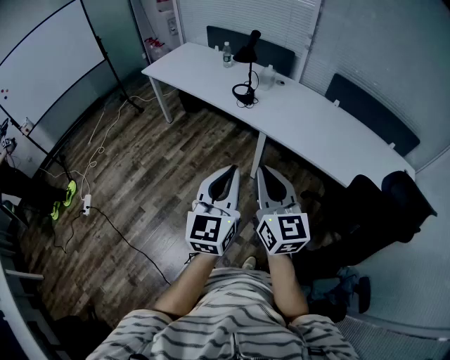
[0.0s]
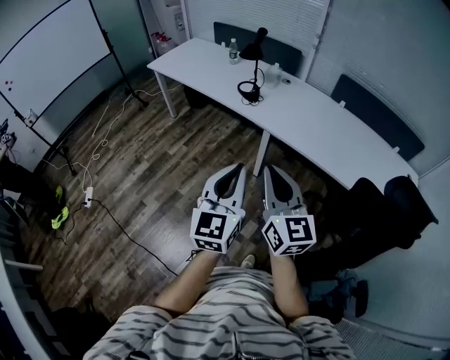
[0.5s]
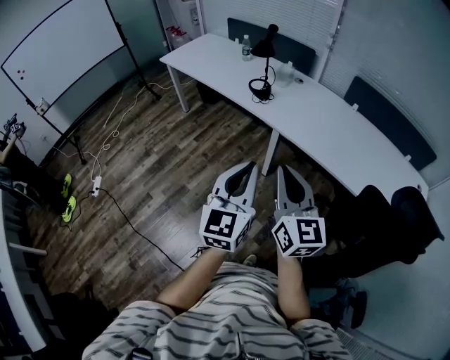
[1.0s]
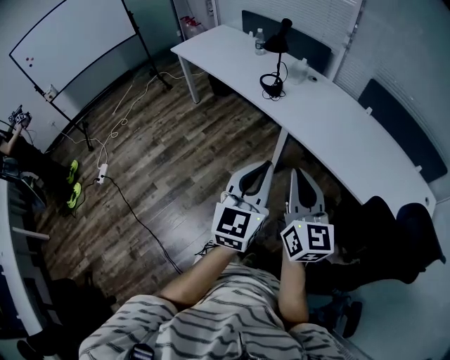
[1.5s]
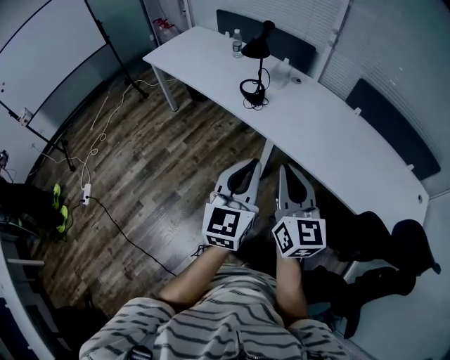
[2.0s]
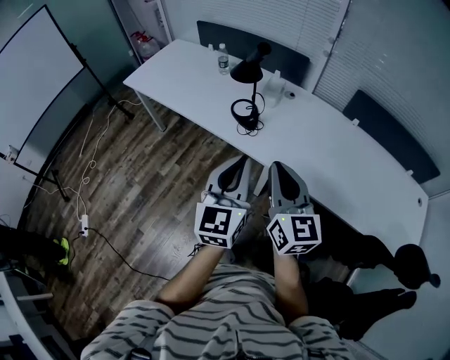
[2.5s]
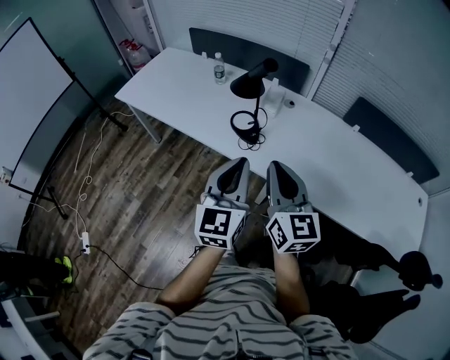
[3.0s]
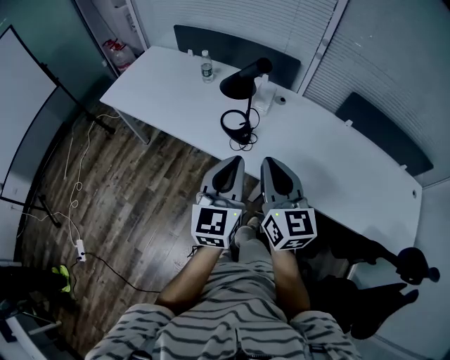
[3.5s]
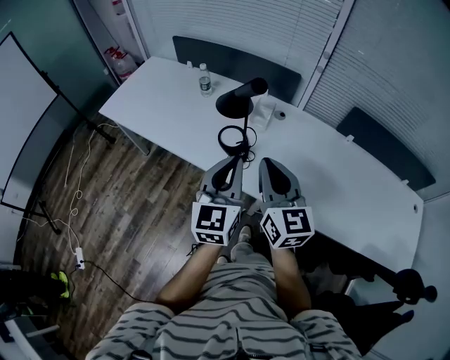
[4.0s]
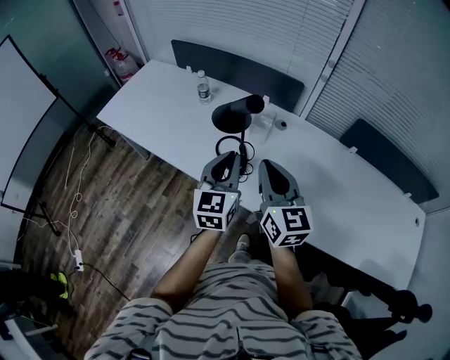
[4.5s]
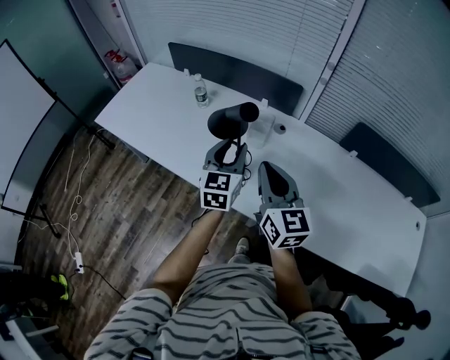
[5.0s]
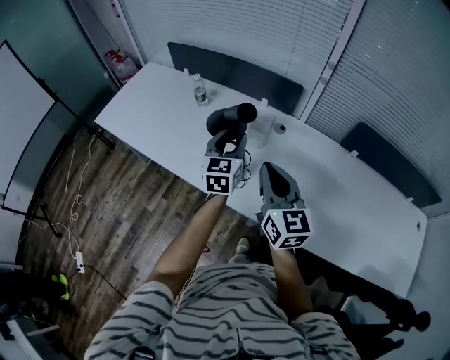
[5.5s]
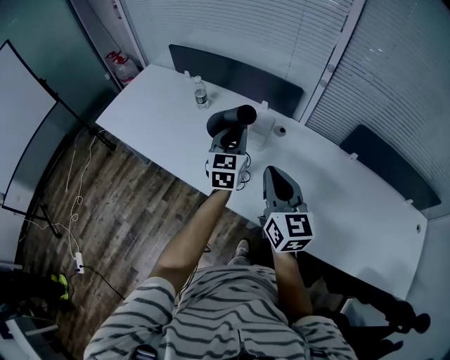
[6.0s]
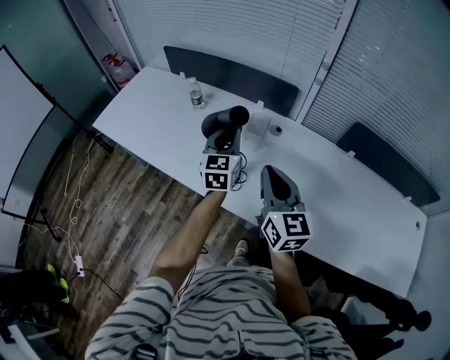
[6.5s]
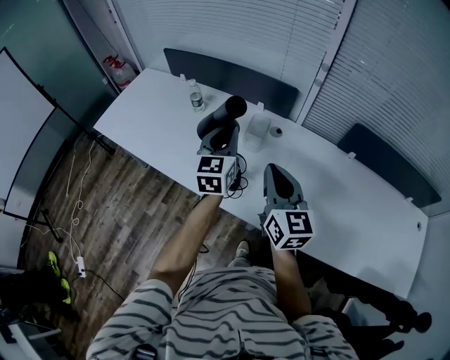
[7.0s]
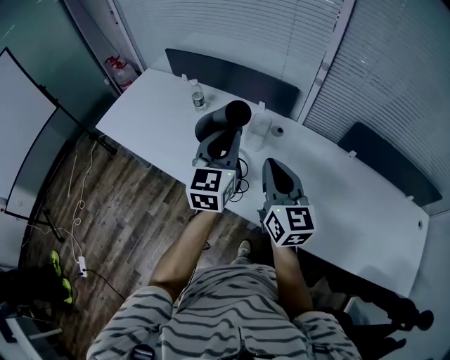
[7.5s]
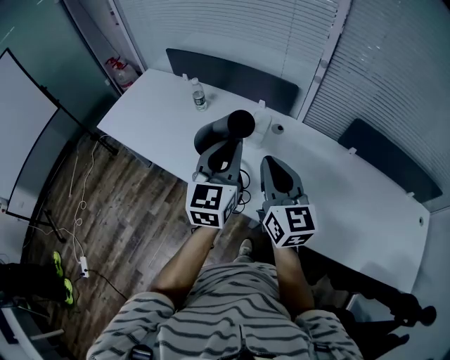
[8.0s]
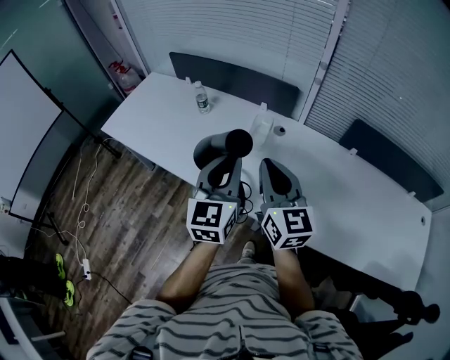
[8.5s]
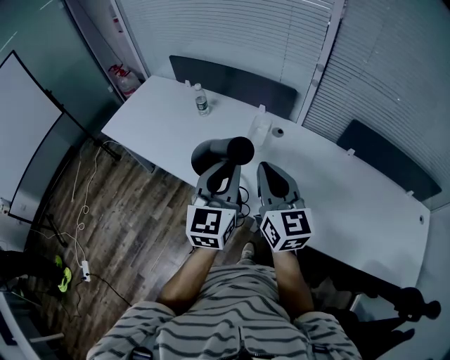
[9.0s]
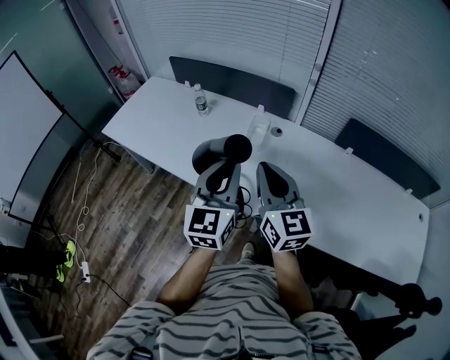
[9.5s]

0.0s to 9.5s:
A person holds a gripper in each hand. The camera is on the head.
0.0s to 2.0s: The right gripper heads forward and to the right, covering some 20 cm. Meanwhile the left gripper heads forward, covering about 20 cm.
2.0s to 4.0s: Both grippers move forward, some 35 cm.
4.0s to 5.5s: The left gripper shifts about 25 cm forward and downward, and opens up. The right gripper is displaced forward by roughly 10 cm.
5.5s to 7.5s: The left gripper goes approximately 10 cm upward, and closes its fingers.
7.5s to 9.5s: The right gripper heads backward, covering approximately 5 cm. Meanwhile the left gripper moves backward, approximately 15 cm.

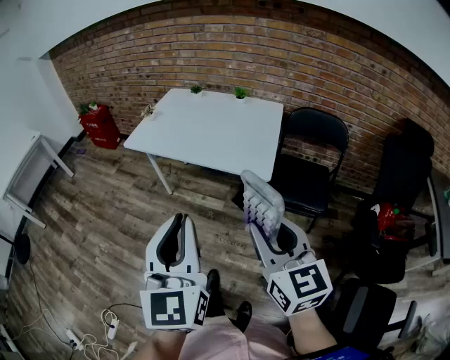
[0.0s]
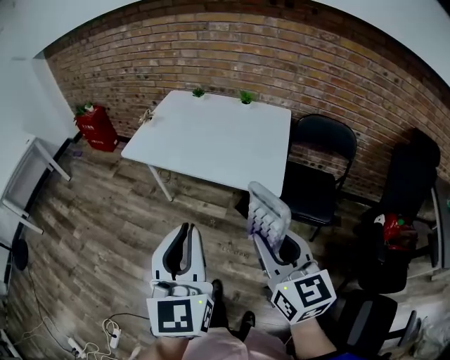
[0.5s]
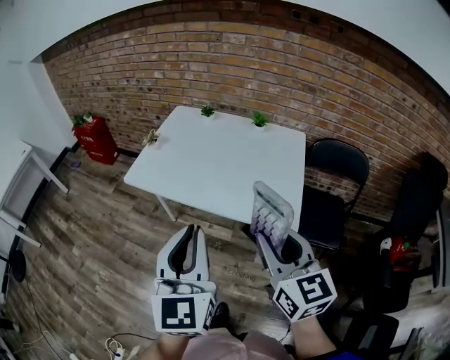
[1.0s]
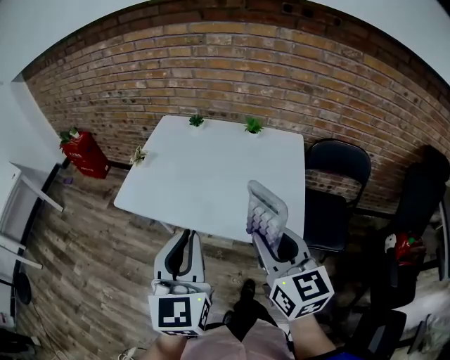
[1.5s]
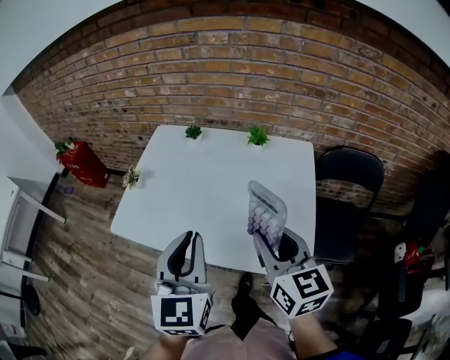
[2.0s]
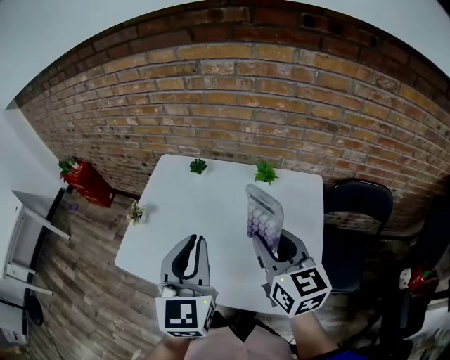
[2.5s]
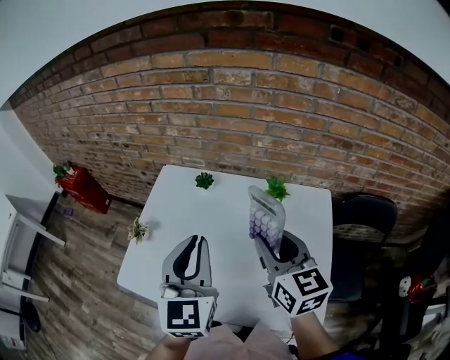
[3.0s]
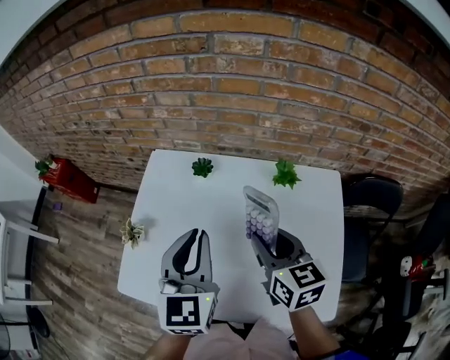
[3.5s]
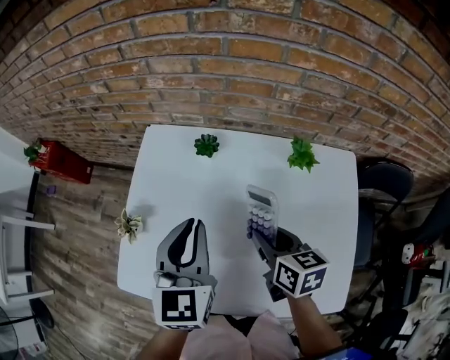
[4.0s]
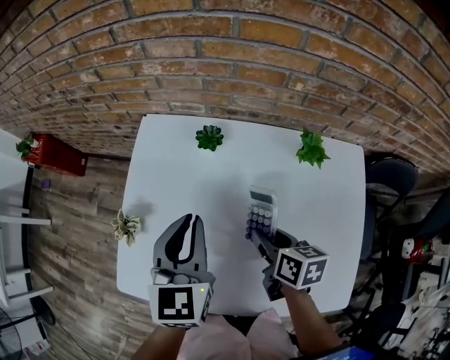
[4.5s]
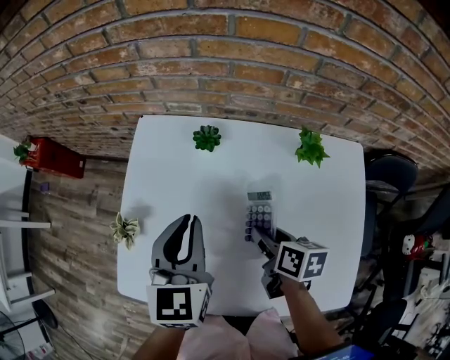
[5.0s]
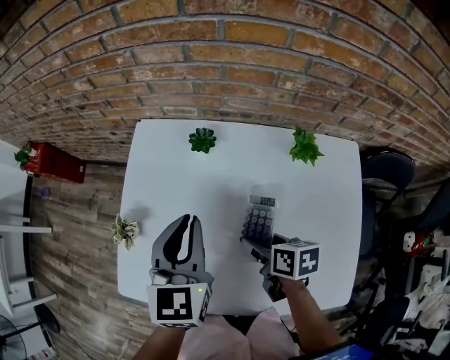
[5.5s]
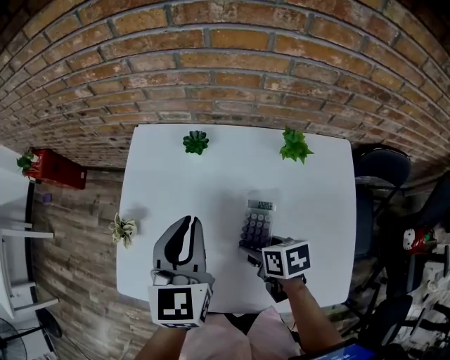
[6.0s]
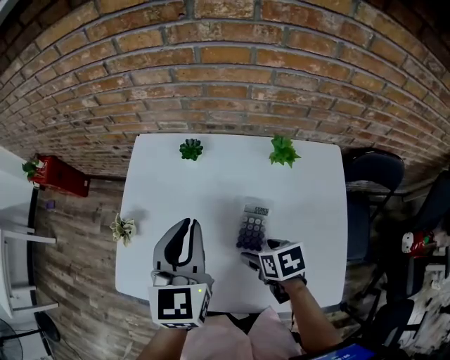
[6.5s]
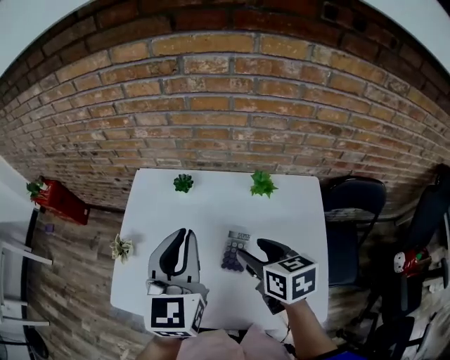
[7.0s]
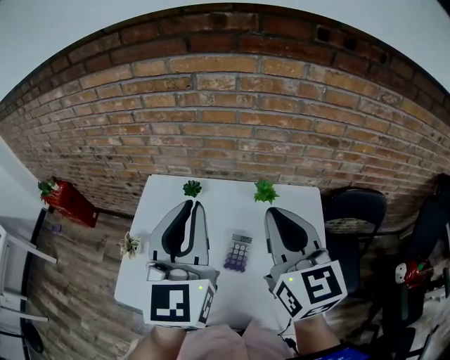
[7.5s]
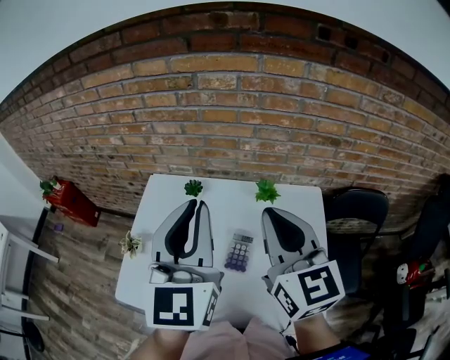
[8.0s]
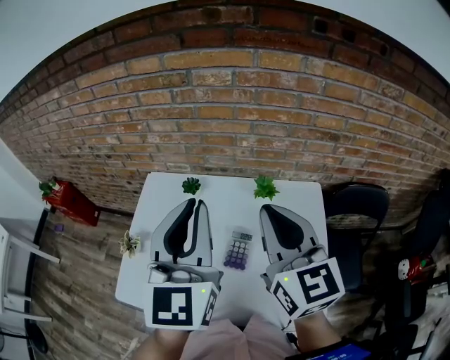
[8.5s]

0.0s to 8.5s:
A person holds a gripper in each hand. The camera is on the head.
0.0s to 2.0s: The two grippers travel together, forward, approximately 40 cm.
2.0s to 4.0s: The right gripper heads forward and downward, covering approximately 30 cm, and rotates about 30 degrees. The left gripper heads forward, covering about 30 cm.
4.0s to 6.5s: The right gripper goes about 10 cm downward and backward, rotates about 30 degrees, and opens its fingers.
6.5s to 8.5s: The right gripper goes approximately 35 cm upward, points its fingers about 60 degrees further upward, and closes. The left gripper travels upward by approximately 20 cm, and turns by roughly 20 degrees.

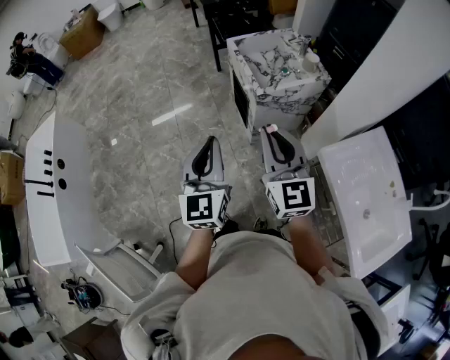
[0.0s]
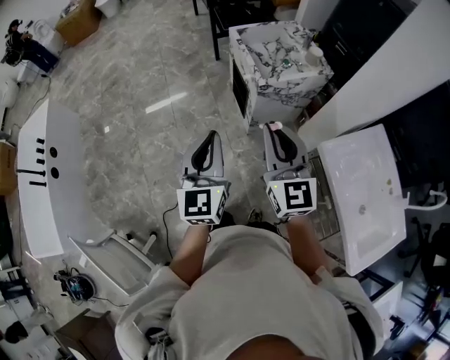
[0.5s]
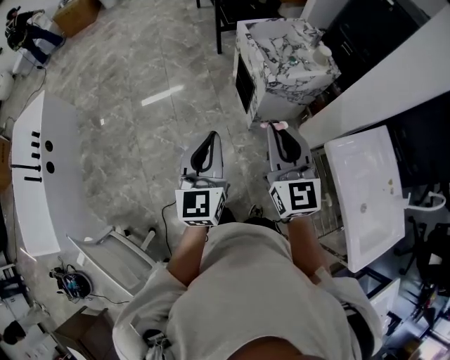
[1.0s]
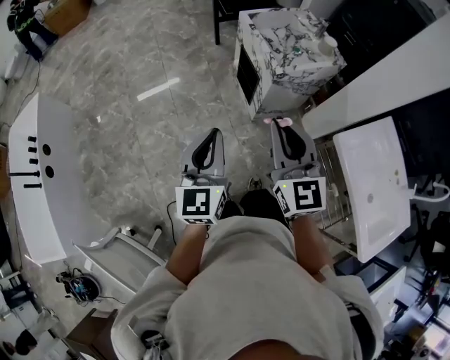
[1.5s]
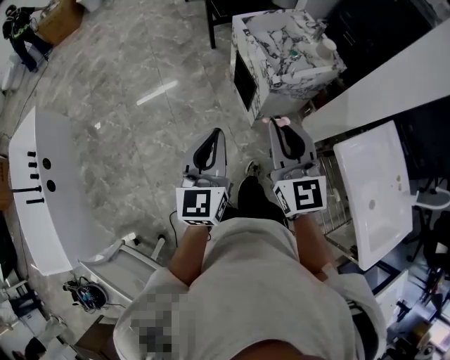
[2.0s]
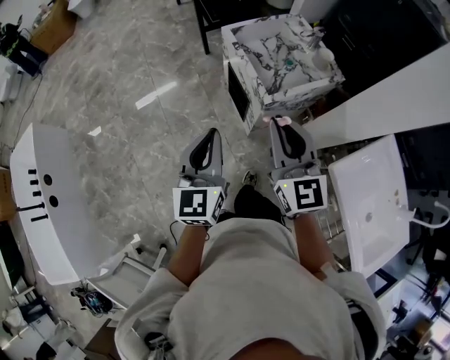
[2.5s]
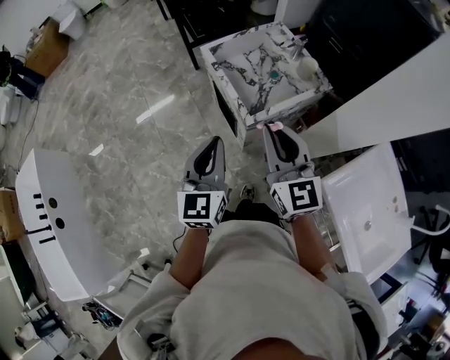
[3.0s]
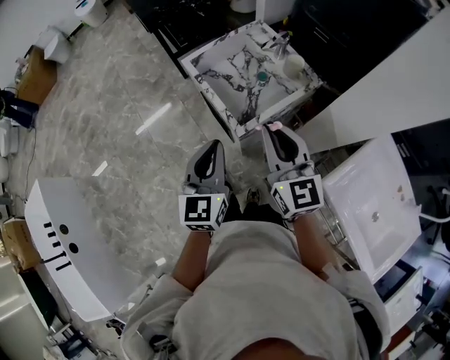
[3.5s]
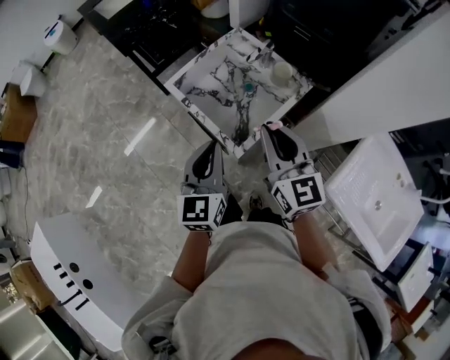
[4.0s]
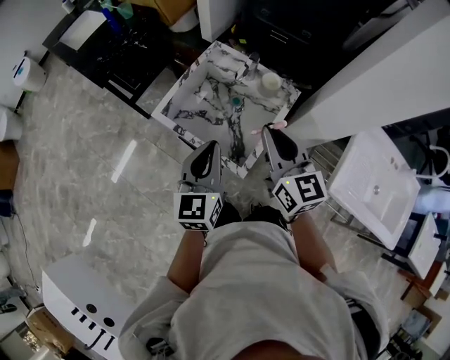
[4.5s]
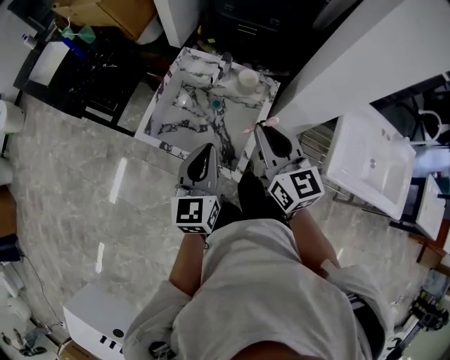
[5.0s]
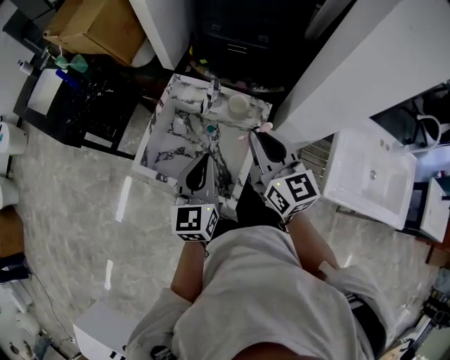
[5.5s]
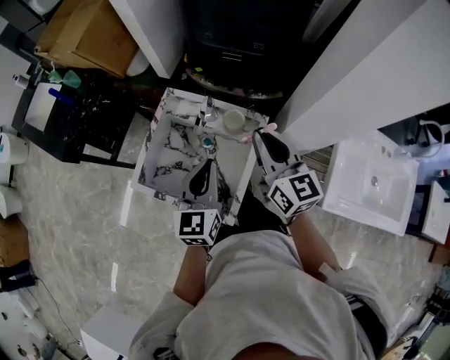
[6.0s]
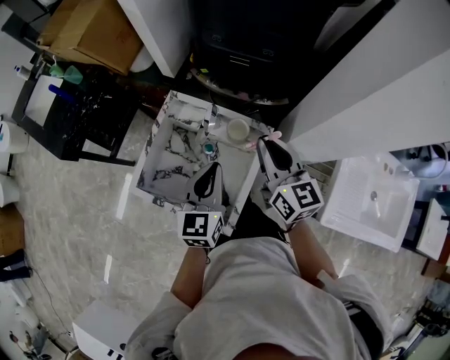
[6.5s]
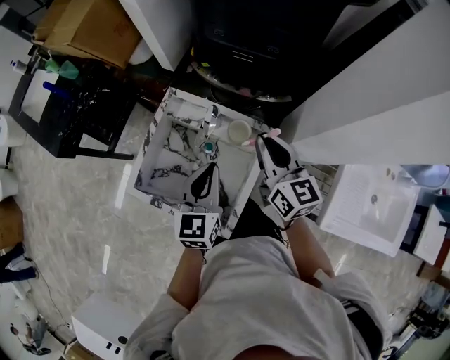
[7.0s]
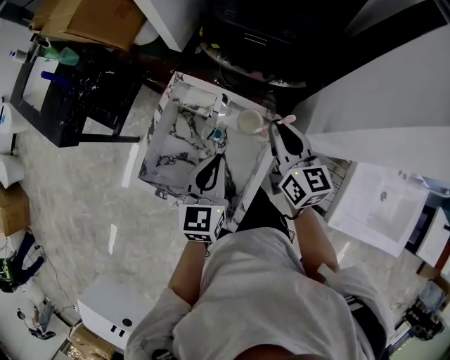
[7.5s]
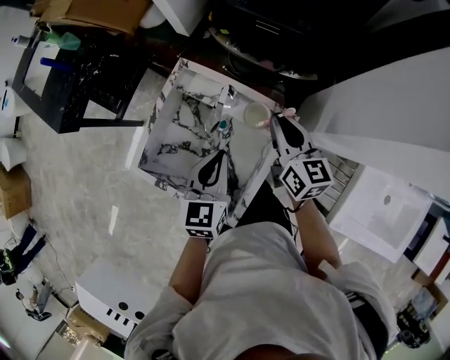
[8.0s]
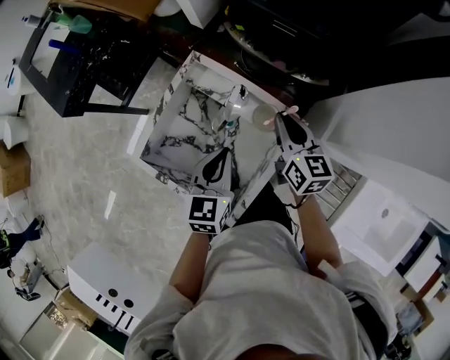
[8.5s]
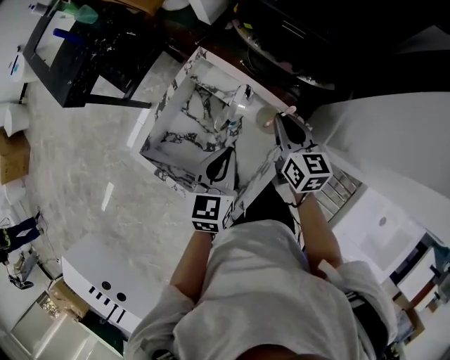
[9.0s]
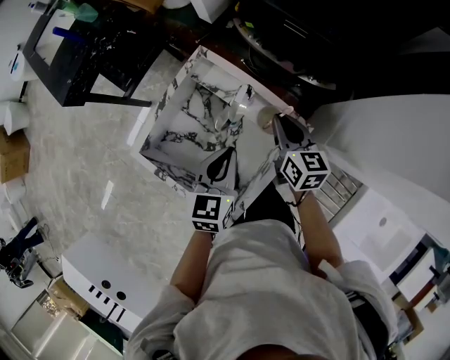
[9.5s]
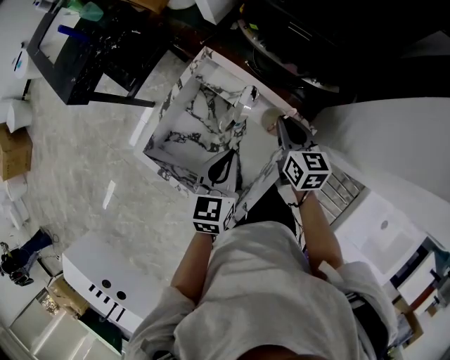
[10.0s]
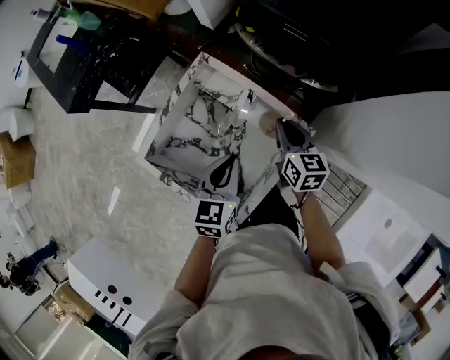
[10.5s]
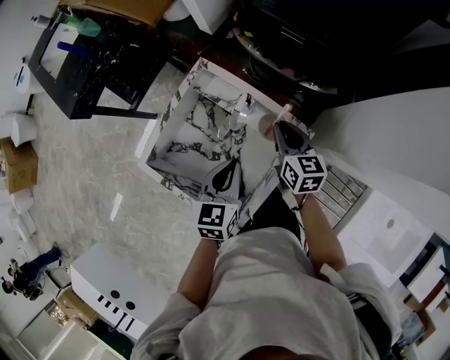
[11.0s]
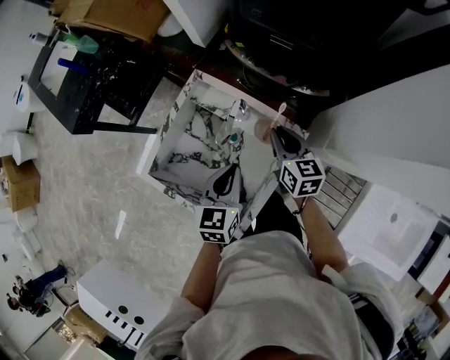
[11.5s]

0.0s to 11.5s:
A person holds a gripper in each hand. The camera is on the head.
0.0s to 2.0s: The right gripper travels to the left and forward by approximately 10 cm. Meanwhile the left gripper moves forward, to the left and downward, some 15 cm.
2.0s to 4.0s: The two grippers go roughly 35 cm forward and to the right. The right gripper rotates about 20 degrees. The left gripper changes its angle by approximately 20 degrees.
4.0s to 6.0s: The left gripper ends up about 25 cm from where it was, and turns by roughly 30 degrees. The right gripper ends up roughly 20 cm from where it was, and changes its angle by some 30 degrees.
6.0s to 7.5s: Both grippers move forward and downward, about 10 cm.
7.5s to 9.5s: The left gripper shifts some 5 cm downward. Meanwhile the right gripper travels downward by approximately 15 cm.
9.5s to 11.5s: The grippers stay close to where they were, moving slightly.
